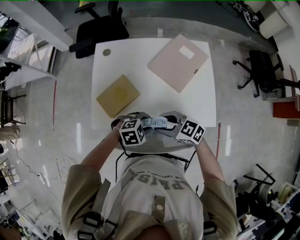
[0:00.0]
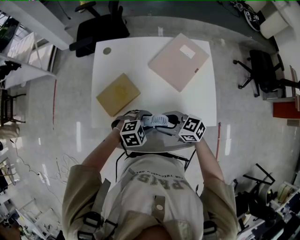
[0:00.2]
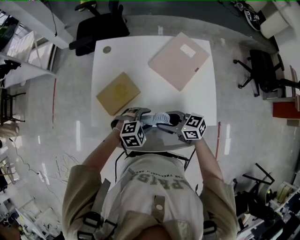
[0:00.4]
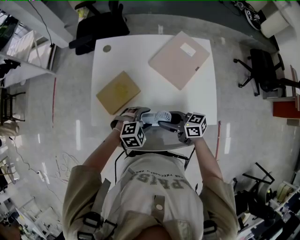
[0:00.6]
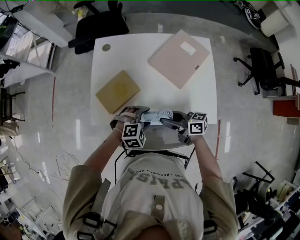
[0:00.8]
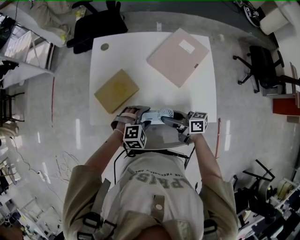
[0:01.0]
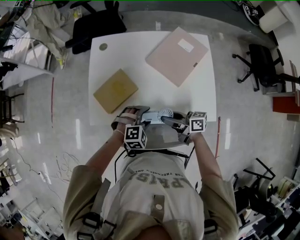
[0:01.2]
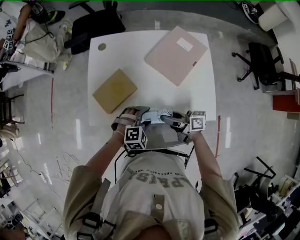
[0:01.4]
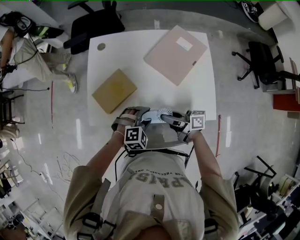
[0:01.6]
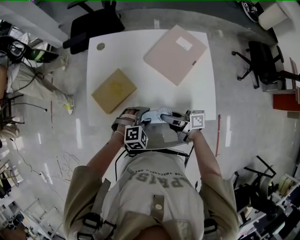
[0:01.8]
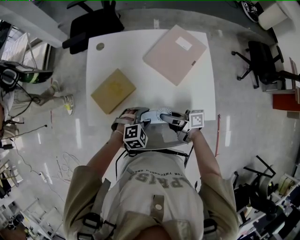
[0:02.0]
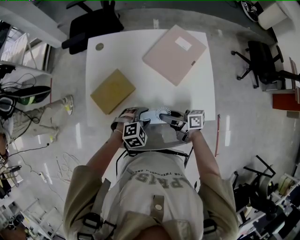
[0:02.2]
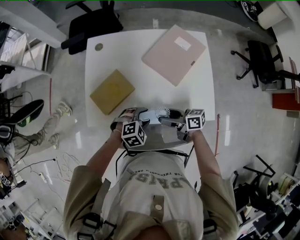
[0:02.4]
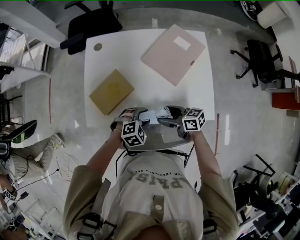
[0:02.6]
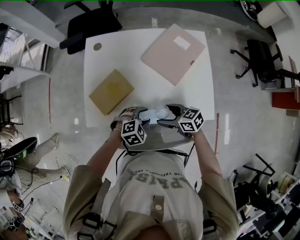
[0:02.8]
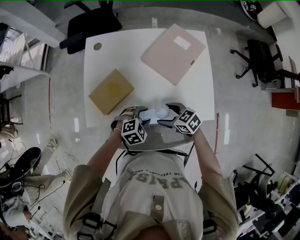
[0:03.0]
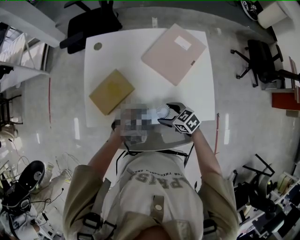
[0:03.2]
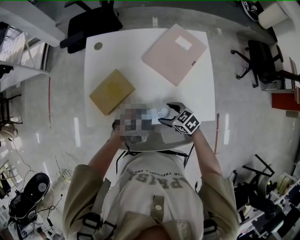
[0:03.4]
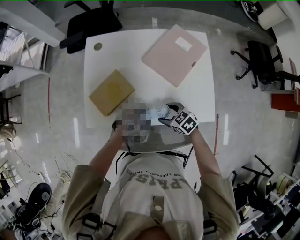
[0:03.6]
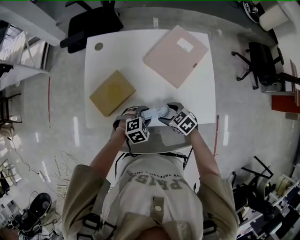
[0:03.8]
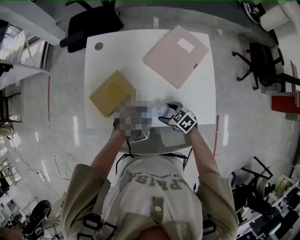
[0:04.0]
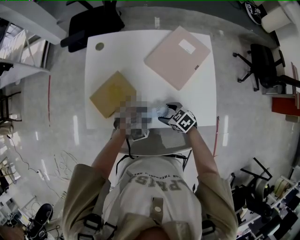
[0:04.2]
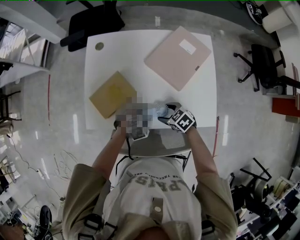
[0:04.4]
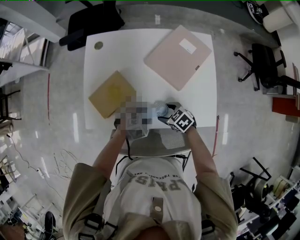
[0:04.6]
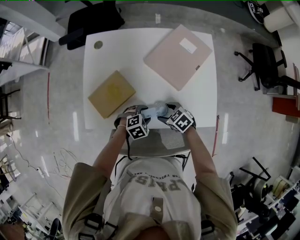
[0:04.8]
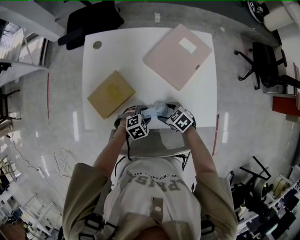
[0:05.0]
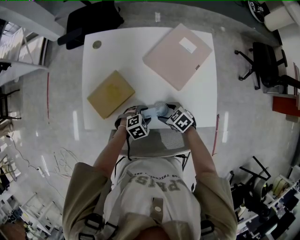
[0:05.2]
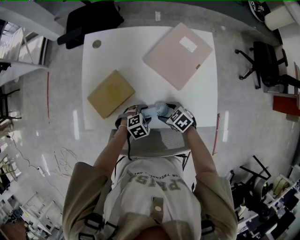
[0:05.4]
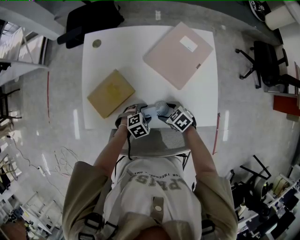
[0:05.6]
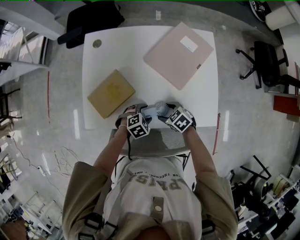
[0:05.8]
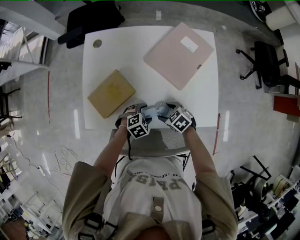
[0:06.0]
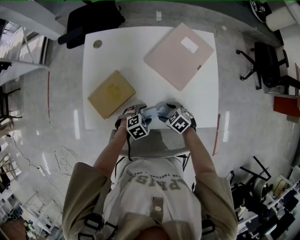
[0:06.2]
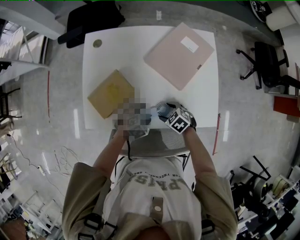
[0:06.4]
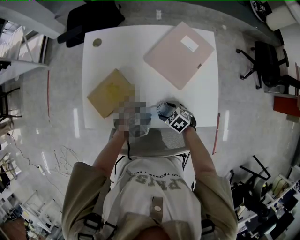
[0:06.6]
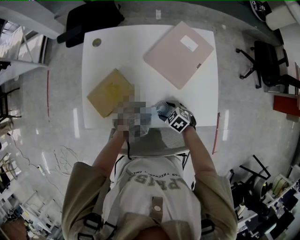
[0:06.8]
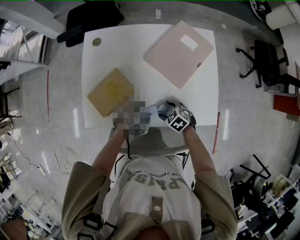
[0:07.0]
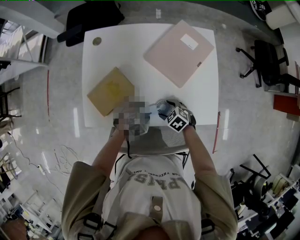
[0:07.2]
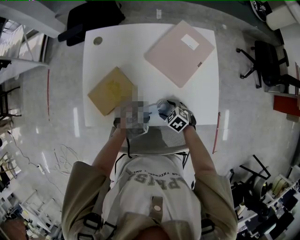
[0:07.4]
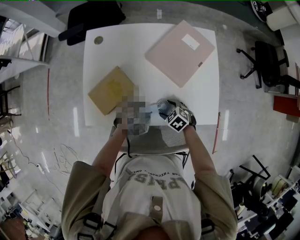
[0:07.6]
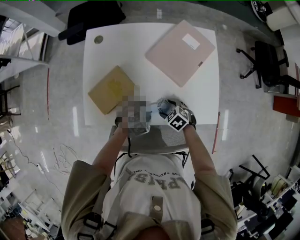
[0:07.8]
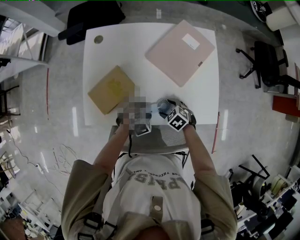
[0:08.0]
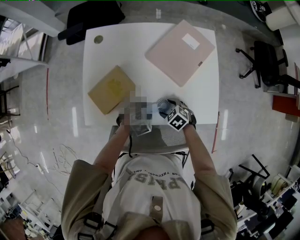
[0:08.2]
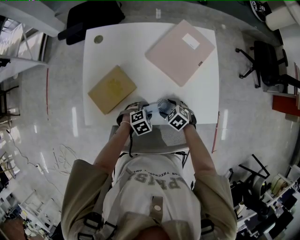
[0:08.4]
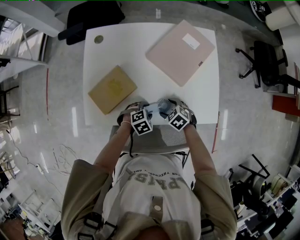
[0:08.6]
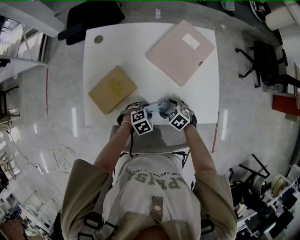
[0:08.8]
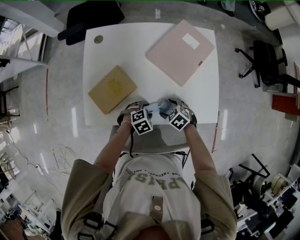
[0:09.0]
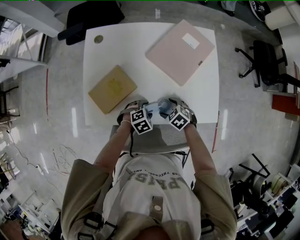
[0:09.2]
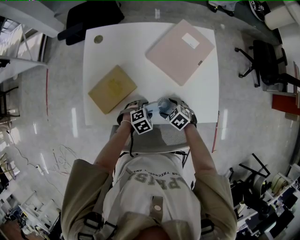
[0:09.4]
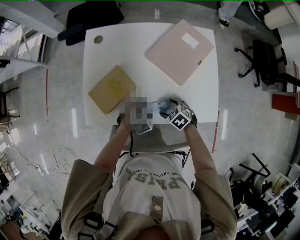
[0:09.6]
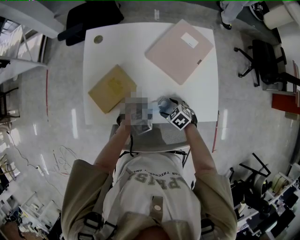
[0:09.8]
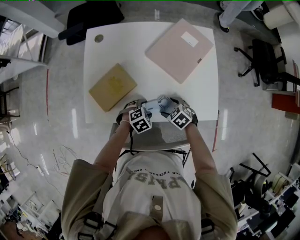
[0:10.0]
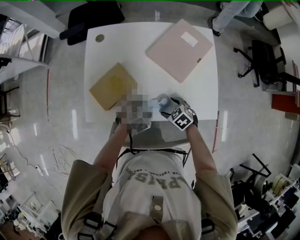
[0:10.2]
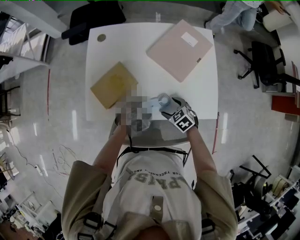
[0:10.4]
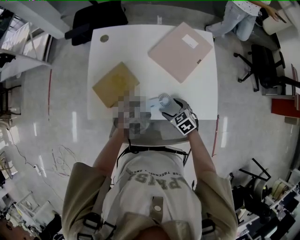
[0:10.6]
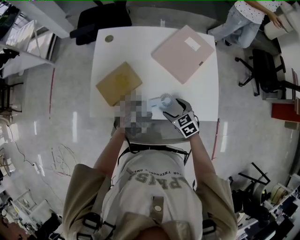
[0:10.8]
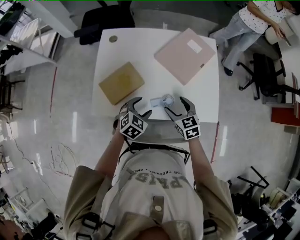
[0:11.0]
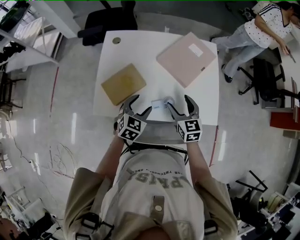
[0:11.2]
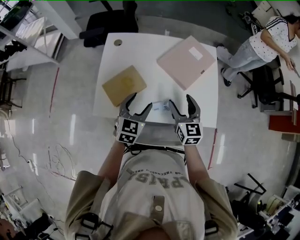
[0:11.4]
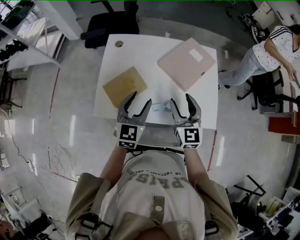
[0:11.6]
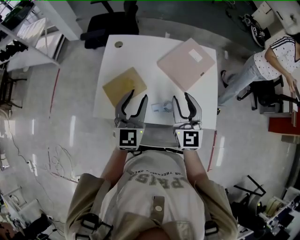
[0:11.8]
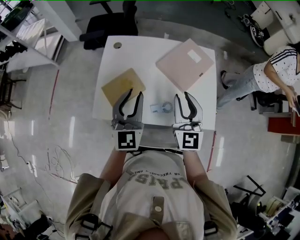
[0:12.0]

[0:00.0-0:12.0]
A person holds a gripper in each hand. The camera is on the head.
0:00.0 to 0:01.6: The right gripper changes place by about 5 cm, and rolls clockwise, seen from behind, by approximately 50 degrees. The left gripper changes its angle by roughly 30 degrees.
0:01.6 to 0:03.0: The right gripper moves downward, some 5 cm, points its fingers some 40 degrees further downward, and opens.
0:03.0 to 0:04.4: The grippers both shift downward by approximately 5 cm.
0:04.4 to 0:10.4: The grippers stay close to where they were, moving slightly.
0:10.4 to 0:12.0: Both grippers travel together upward, some 35 cm. The left gripper tips its fingers upward by roughly 60 degrees, and closes up. The right gripper tips its fingers upward by about 60 degrees, and closes up.

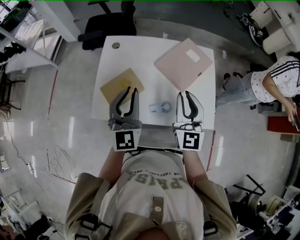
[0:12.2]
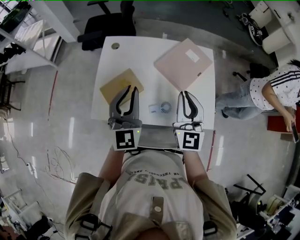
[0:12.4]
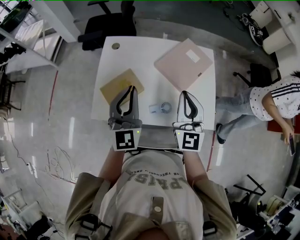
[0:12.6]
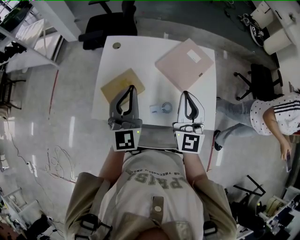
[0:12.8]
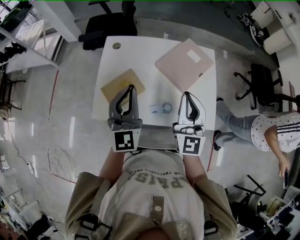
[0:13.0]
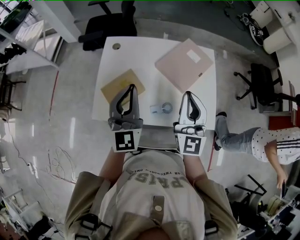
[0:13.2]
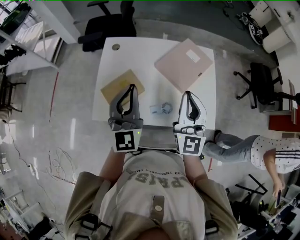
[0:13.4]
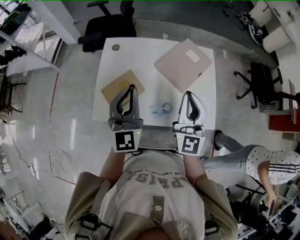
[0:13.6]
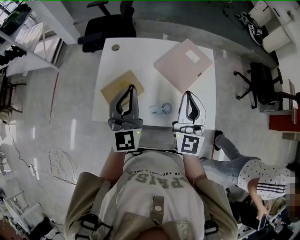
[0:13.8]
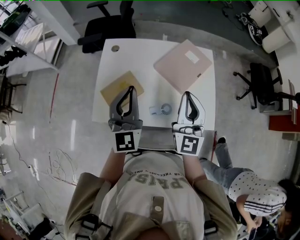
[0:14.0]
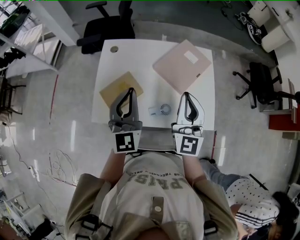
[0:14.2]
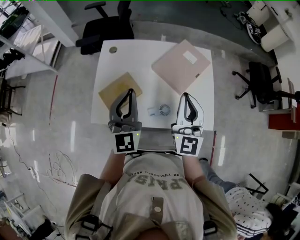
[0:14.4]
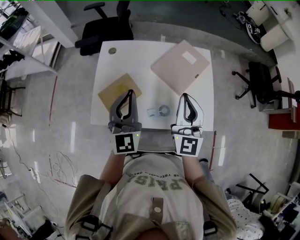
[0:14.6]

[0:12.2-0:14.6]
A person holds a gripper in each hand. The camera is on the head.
0:12.2 to 0:14.6: There are only small adjustments of the grippers.

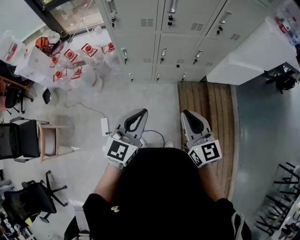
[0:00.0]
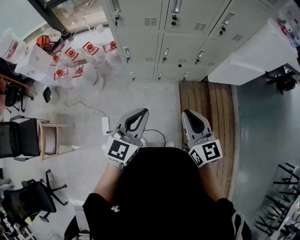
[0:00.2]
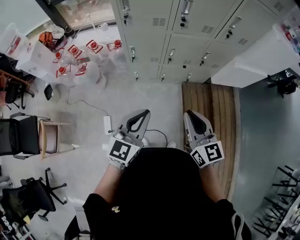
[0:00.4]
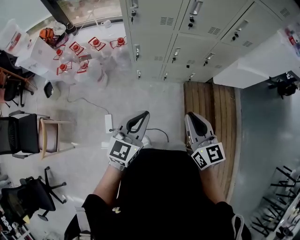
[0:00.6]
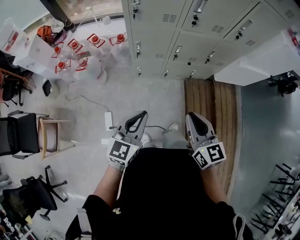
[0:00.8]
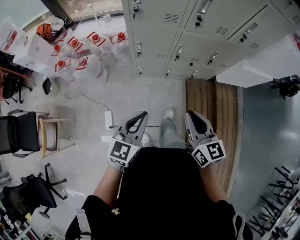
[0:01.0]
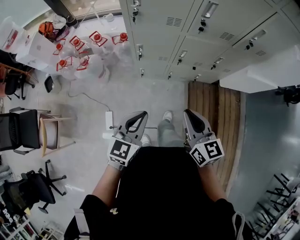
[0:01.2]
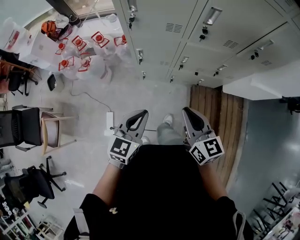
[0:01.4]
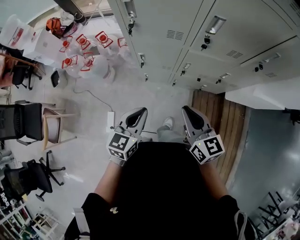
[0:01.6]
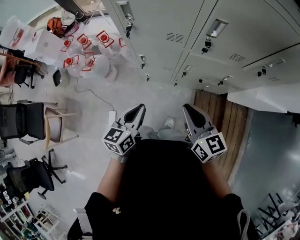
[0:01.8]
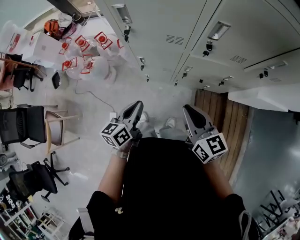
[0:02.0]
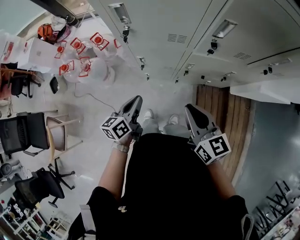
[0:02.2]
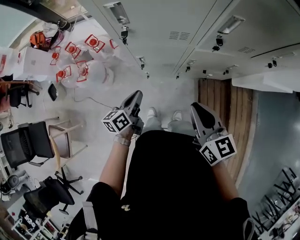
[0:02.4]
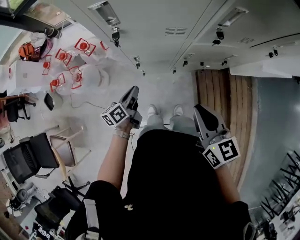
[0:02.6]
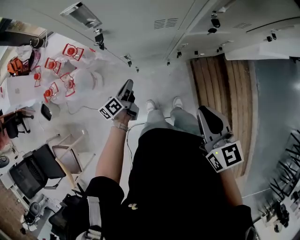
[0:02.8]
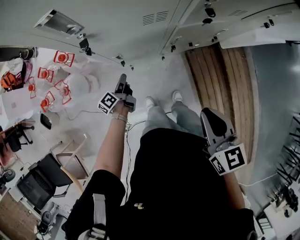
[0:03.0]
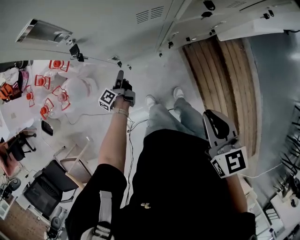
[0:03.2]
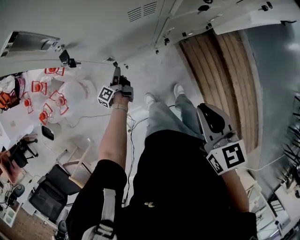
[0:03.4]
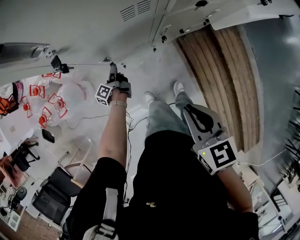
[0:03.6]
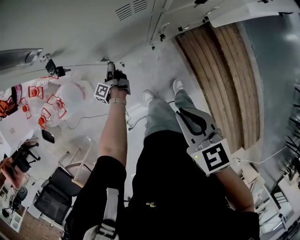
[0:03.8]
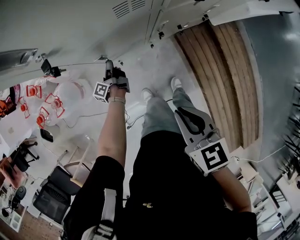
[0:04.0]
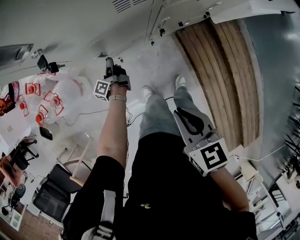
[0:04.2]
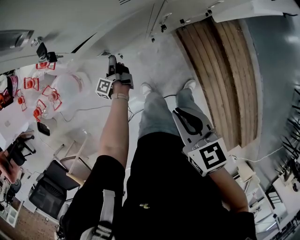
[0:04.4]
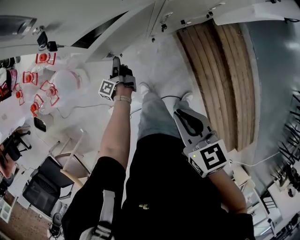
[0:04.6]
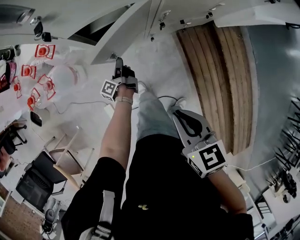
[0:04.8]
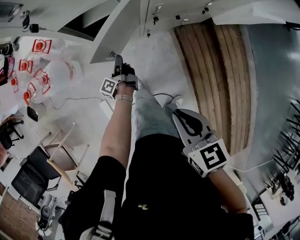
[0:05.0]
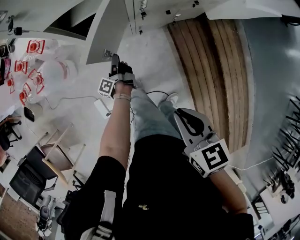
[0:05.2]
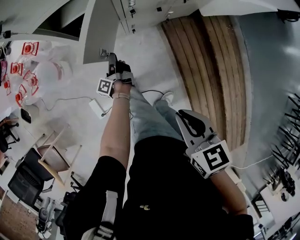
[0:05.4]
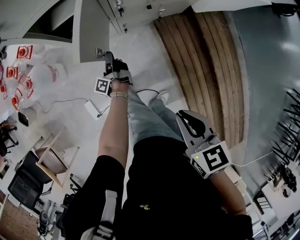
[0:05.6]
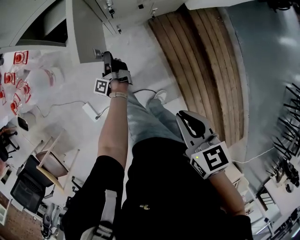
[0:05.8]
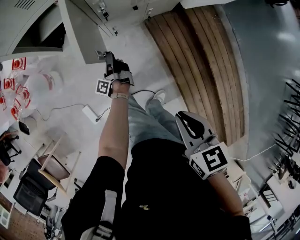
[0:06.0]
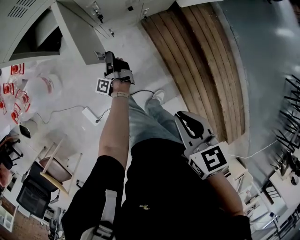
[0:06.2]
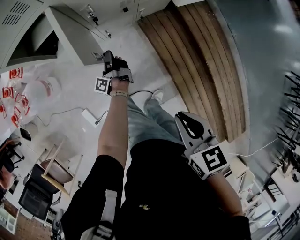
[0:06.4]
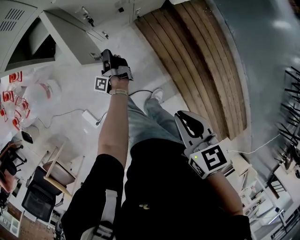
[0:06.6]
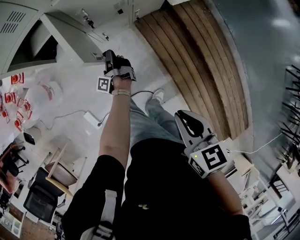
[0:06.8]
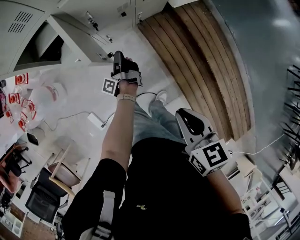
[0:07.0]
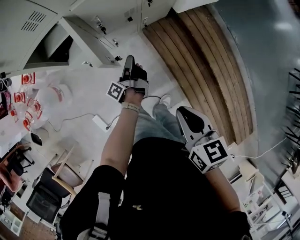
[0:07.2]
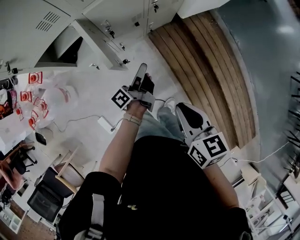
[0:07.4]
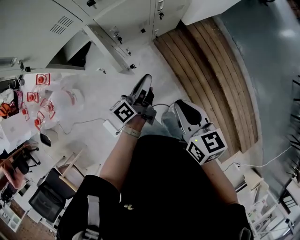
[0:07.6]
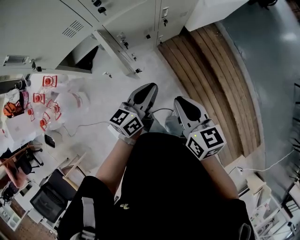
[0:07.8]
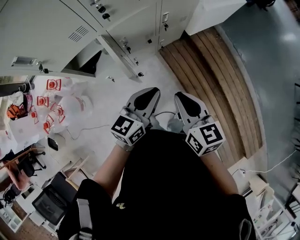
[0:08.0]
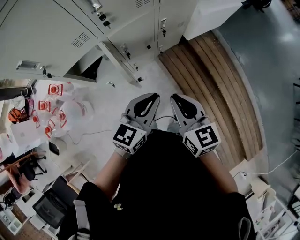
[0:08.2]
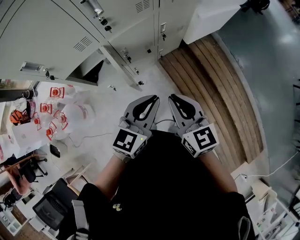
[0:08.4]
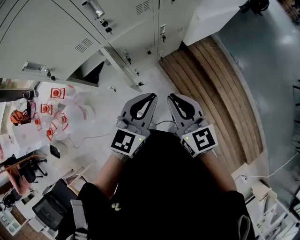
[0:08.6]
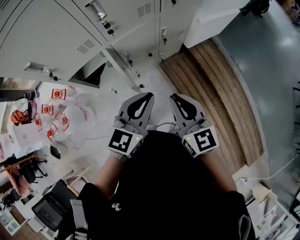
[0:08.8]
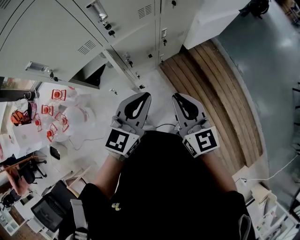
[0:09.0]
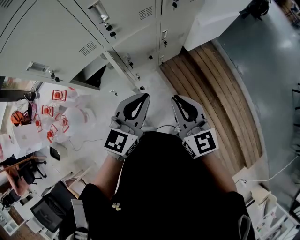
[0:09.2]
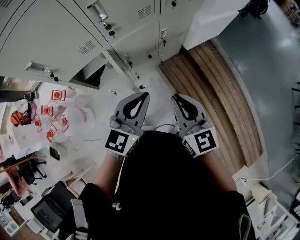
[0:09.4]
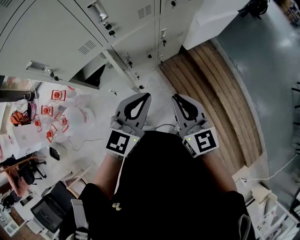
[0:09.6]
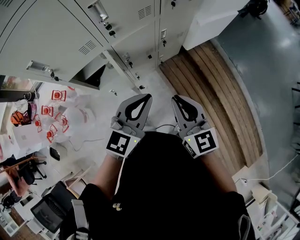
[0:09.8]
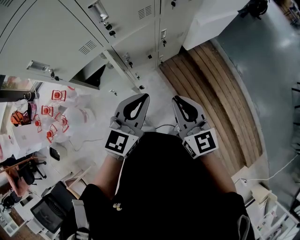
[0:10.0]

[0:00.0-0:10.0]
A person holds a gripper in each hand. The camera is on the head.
0:00.0 to 0:01.4: The left gripper is displaced forward, downward and to the left by about 15 cm, while the right gripper shifts approximately 20 cm forward and to the left.
0:01.4 to 0:02.8: The right gripper moves forward, about 10 cm. Meanwhile the left gripper heads downward and forward, covering about 35 cm, and rotates around the line of its fingers by about 60 degrees, counterclockwise from behind.
0:02.8 to 0:04.2: The left gripper heads downward and forward, covering approximately 20 cm, and swivels some 30 degrees; the right gripper shifts about 10 cm downward and to the left.
0:04.2 to 0:05.8: The two grippers go approximately 25 cm backward and to the right.
0:05.8 to 0:07.2: The left gripper shifts about 20 cm to the right and upward, and changes its angle by approximately 20 degrees.
0:07.2 to 0:08.6: The left gripper travels upward by roughly 35 cm, and rotates around the line of its fingers by some 90 degrees, clockwise from behind. The right gripper heads upward, forward and to the left, covering roughly 15 cm, and turns by some 30 degrees.
0:08.6 to 0:10.0: There are only small adjustments of the grippers.
